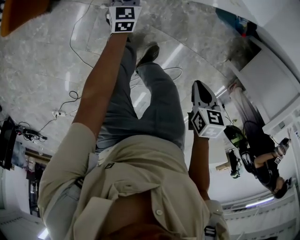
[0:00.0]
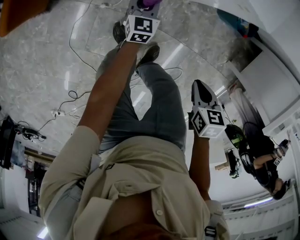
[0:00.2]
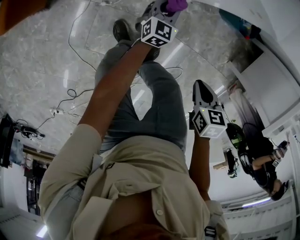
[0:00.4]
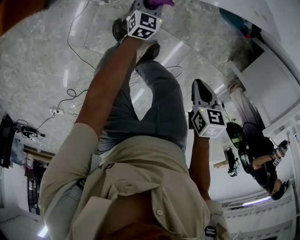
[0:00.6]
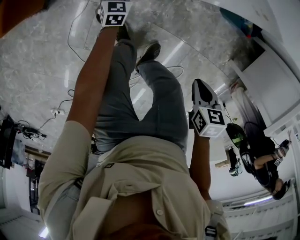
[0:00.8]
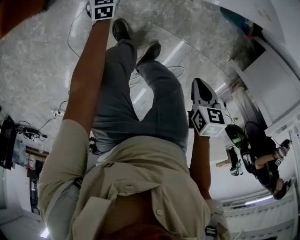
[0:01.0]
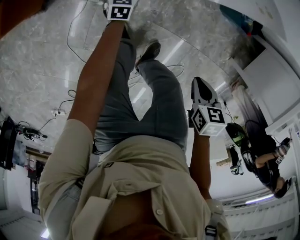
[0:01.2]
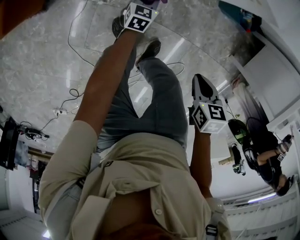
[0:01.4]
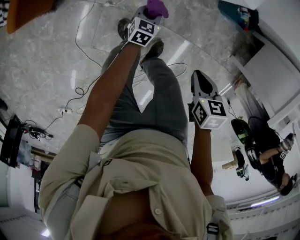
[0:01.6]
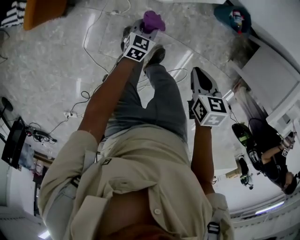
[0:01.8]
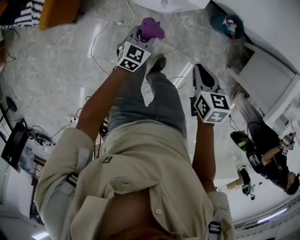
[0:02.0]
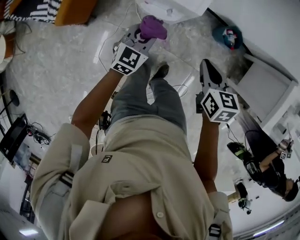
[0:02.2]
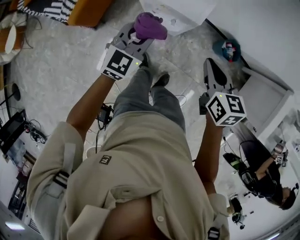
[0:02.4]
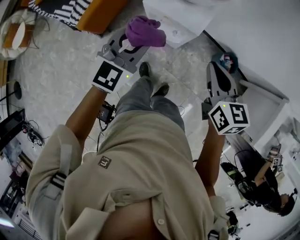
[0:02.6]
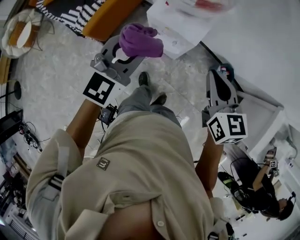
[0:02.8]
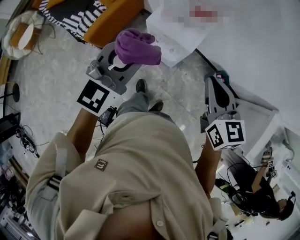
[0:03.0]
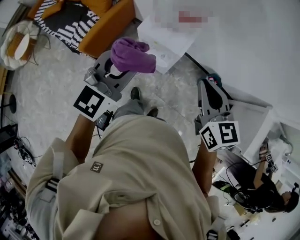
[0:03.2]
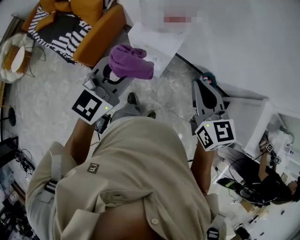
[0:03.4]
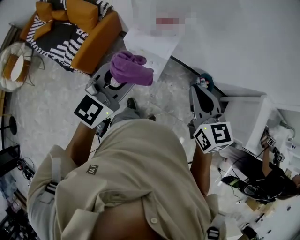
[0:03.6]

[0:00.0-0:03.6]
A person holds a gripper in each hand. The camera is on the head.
0:00.0 to 0:01.8: The right gripper goes about 10 cm upward; the left gripper goes left and right, roughly 20 cm each way, reversing 2 times, and turns by roughly 30 degrees.
0:01.8 to 0:03.6: The two grippers go some 60 cm upward. The right gripper tilts its fingers some 40 degrees upward; the left gripper tips its fingers upward by about 30 degrees.

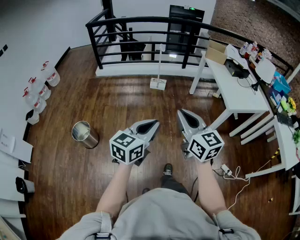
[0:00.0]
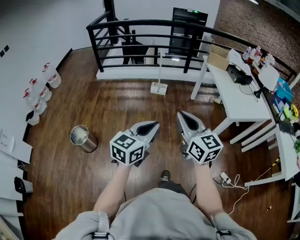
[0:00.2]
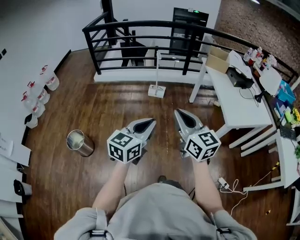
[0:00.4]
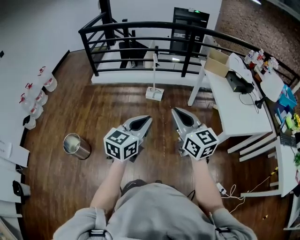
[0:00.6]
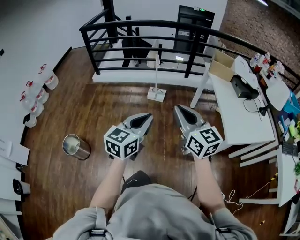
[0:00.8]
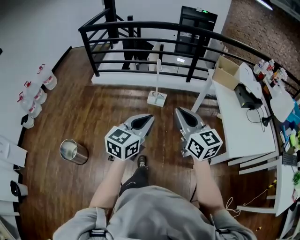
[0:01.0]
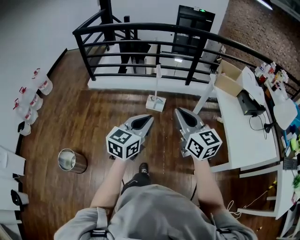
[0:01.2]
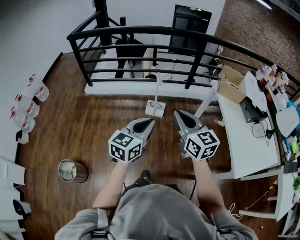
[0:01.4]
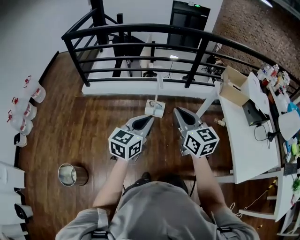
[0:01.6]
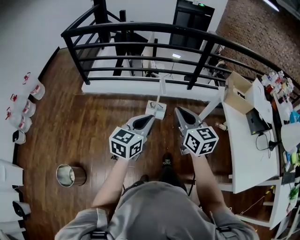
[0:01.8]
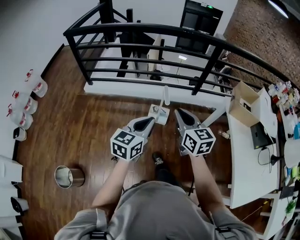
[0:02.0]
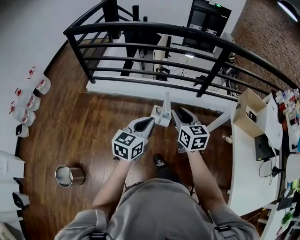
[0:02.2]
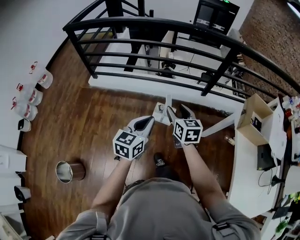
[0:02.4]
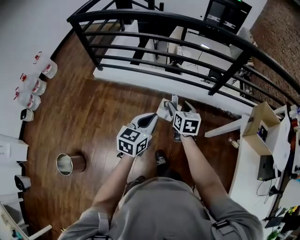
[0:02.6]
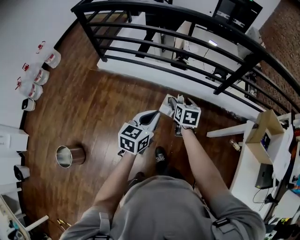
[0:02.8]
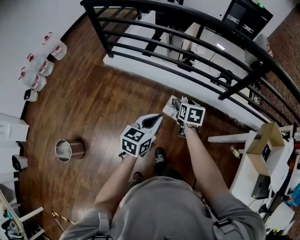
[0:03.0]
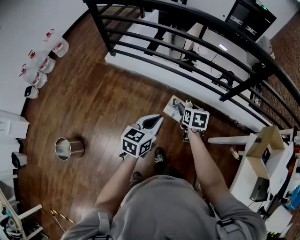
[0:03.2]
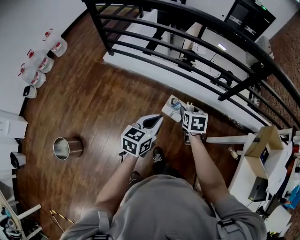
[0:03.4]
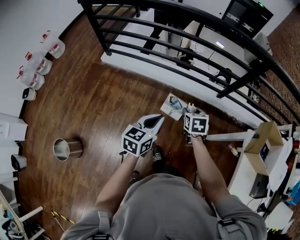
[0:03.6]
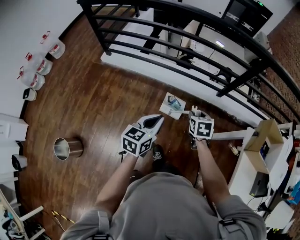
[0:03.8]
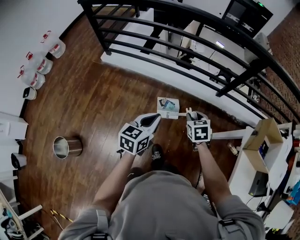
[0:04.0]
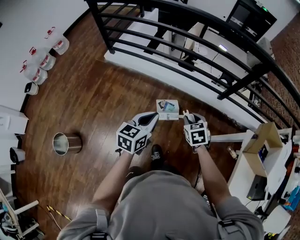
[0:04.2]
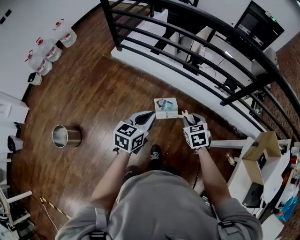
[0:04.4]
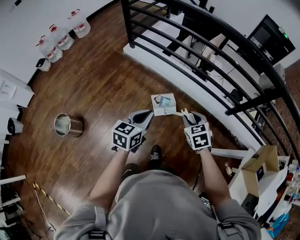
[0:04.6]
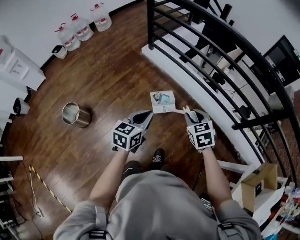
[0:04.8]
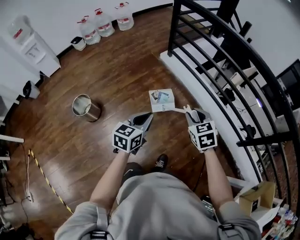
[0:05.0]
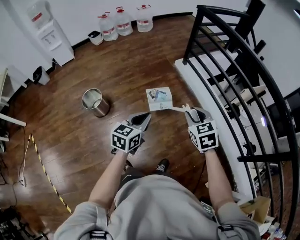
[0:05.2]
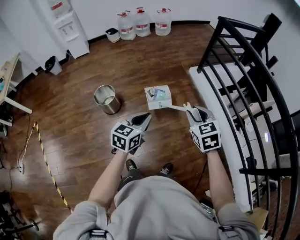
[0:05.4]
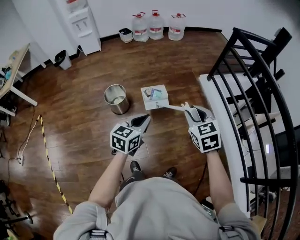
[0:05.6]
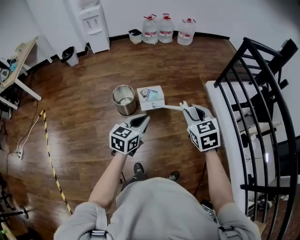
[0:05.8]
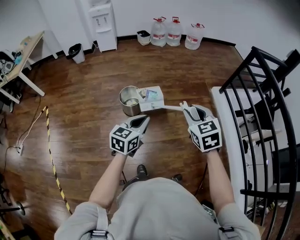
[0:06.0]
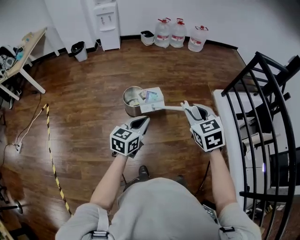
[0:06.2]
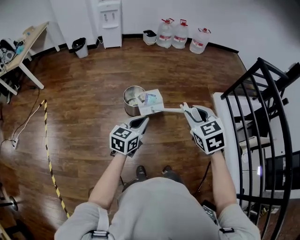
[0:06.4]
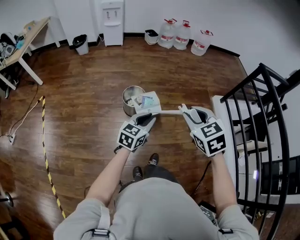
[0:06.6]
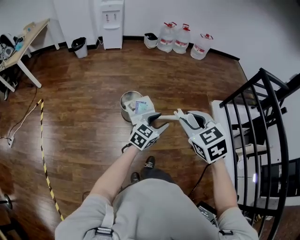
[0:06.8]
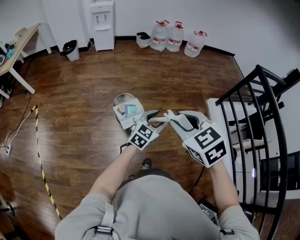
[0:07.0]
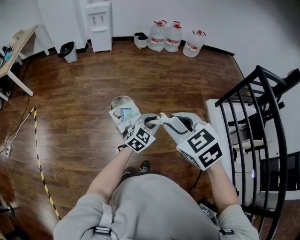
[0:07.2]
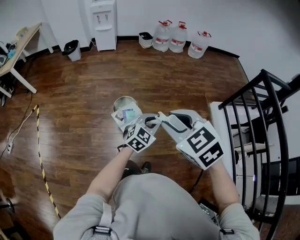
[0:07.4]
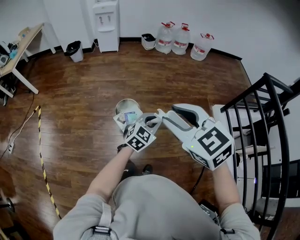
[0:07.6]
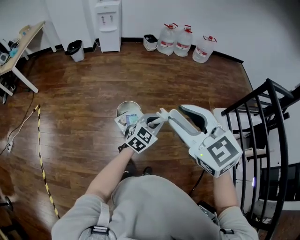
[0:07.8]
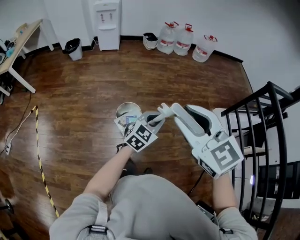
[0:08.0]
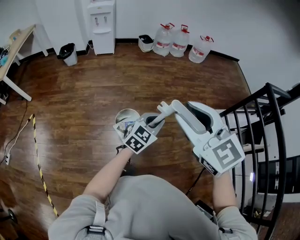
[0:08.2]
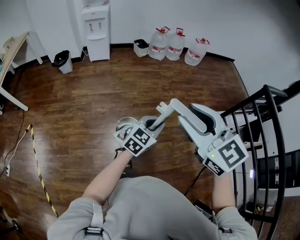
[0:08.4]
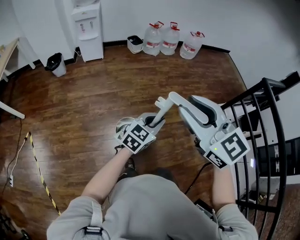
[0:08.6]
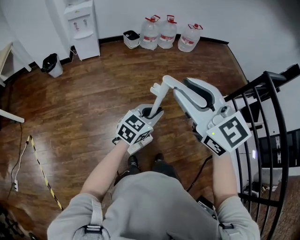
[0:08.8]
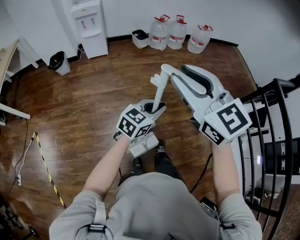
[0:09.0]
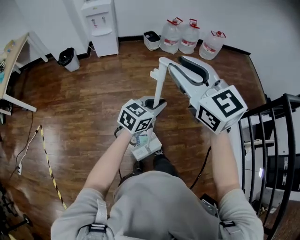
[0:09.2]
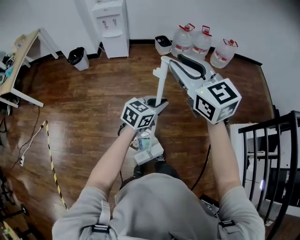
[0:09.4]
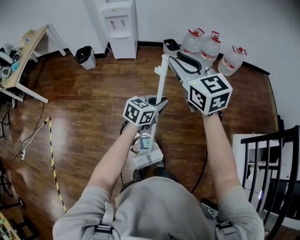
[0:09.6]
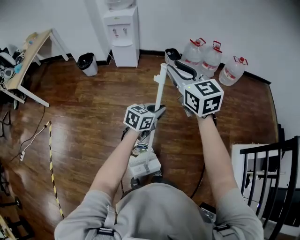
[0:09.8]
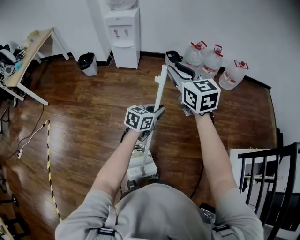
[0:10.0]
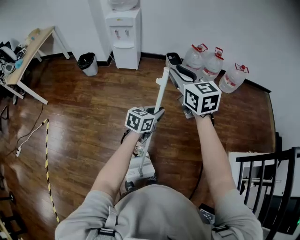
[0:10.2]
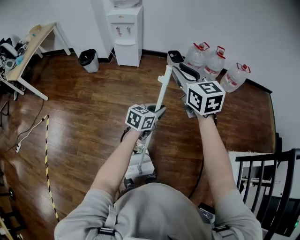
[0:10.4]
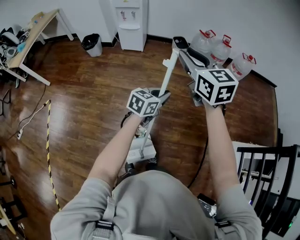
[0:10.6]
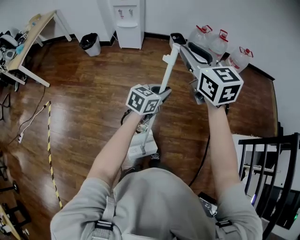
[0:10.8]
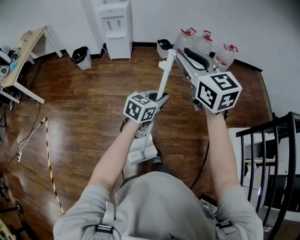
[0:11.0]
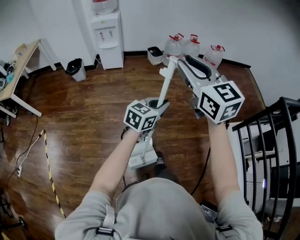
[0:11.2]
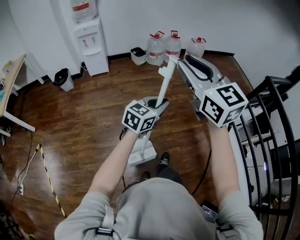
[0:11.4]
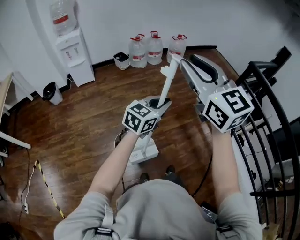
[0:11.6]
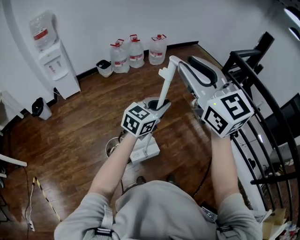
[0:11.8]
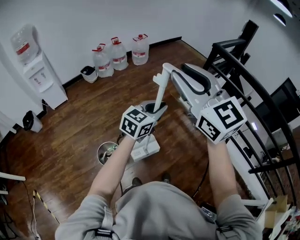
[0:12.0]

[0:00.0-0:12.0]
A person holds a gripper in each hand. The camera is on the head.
0:00.0 to 0:01.6: The two grippers travel together, forward, roughly 60 cm.
0:01.6 to 0:03.0: The grippers both shift forward and downward by some 40 cm. The right gripper angles its fingers downward, by roughly 40 degrees, and opens its fingers. Meanwhile the left gripper rotates approximately 20 degrees.
0:03.0 to 0:04.4: The right gripper is displaced backward by approximately 10 cm, changes its angle by some 40 degrees, and closes up.
0:04.4 to 0:06.0: Both grippers are carried about 60 cm. The right gripper rotates approximately 60 degrees; the left gripper rotates approximately 50 degrees.
0:06.0 to 0:07.6: The right gripper heads to the left, forward and upward, covering about 20 cm, and swivels approximately 30 degrees, while the left gripper heads forward, covering roughly 20 cm, turns by approximately 30 degrees, and opens and closes again.
0:07.6 to 0:09.0: Both grippers travel together forward and to the left, roughly 35 cm. The left gripper rotates about 20 degrees; the right gripper turns by roughly 20 degrees.
0:09.0 to 0:10.4: The two grippers go roughly 30 cm forward. The left gripper turns by some 30 degrees.
0:10.4 to 0:12.0: The pair of grippers is taken about 50 cm. The right gripper changes its angle by roughly 40 degrees, while the left gripper swivels some 50 degrees.

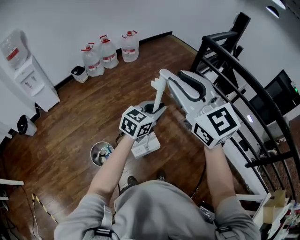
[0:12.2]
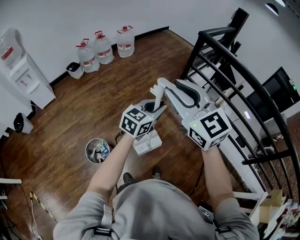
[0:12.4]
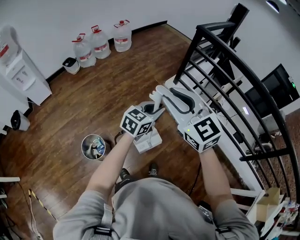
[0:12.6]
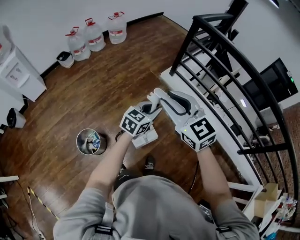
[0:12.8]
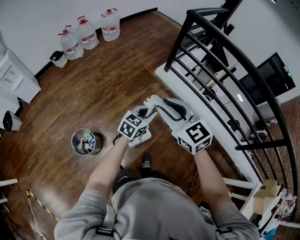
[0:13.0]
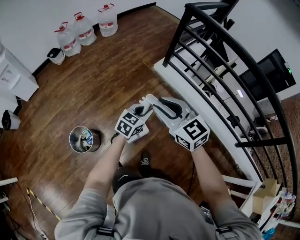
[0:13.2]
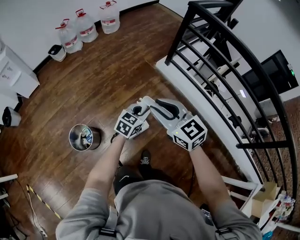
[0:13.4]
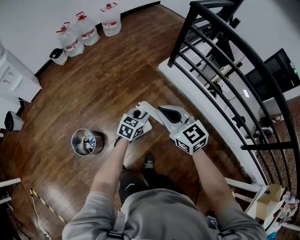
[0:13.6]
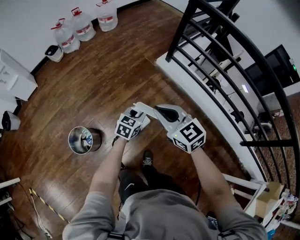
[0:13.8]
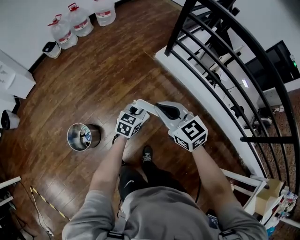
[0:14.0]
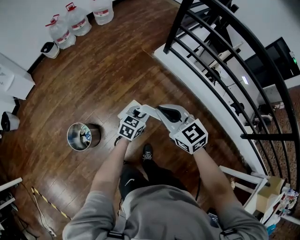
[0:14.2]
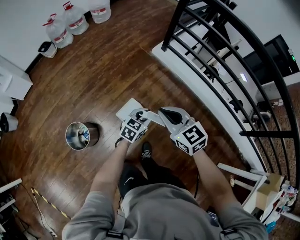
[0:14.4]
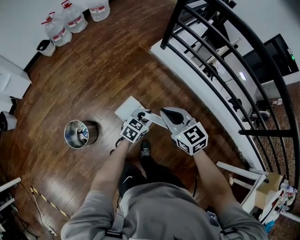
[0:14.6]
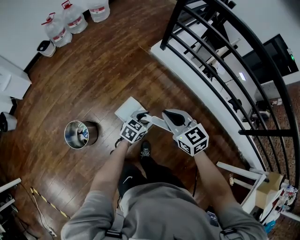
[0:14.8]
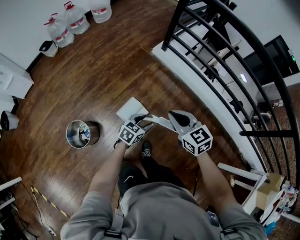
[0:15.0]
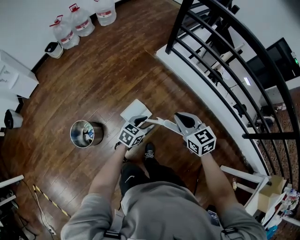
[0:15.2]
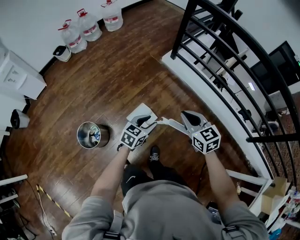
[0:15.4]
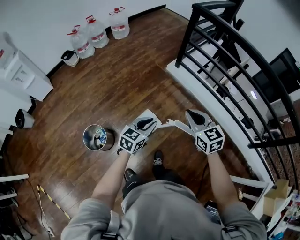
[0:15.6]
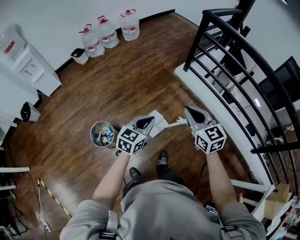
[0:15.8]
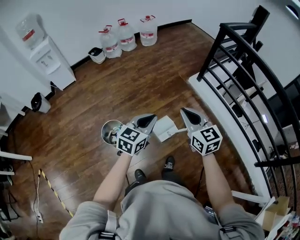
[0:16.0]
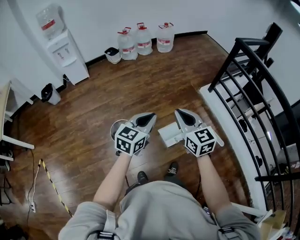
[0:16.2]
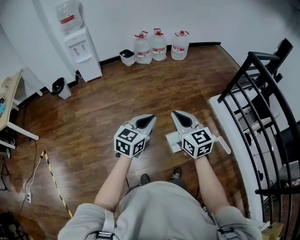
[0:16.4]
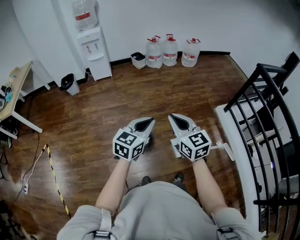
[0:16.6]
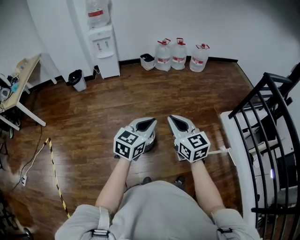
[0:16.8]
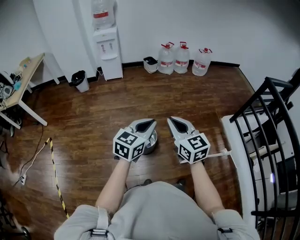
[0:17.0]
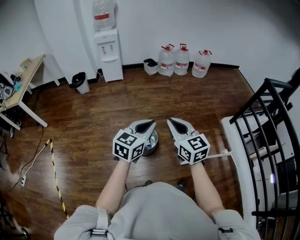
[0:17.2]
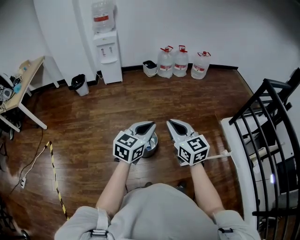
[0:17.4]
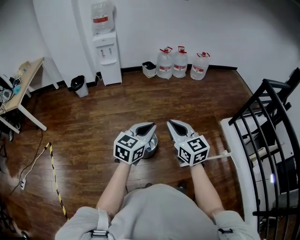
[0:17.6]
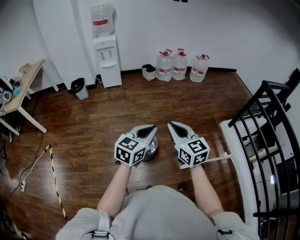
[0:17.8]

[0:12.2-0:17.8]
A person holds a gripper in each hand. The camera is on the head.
0:12.2 to 0:13.6: The left gripper moves downward, about 30 cm. Meanwhile the right gripper heads downward and to the right, covering roughly 35 cm, turns by about 20 degrees, and closes its fingers.
0:13.6 to 0:15.0: The left gripper moves backward, downward and to the right, approximately 15 cm, and opens its fingers. Meanwhile the right gripper shifts some 15 cm downward and to the right.
0:15.0 to 0:16.4: The left gripper moves about 50 cm, turns by approximately 50 degrees, and closes. Meanwhile the right gripper ends up some 40 cm from where it was, and turns by about 30 degrees.
0:16.4 to 0:17.8: Both grippers travel together to the left, some 15 cm.

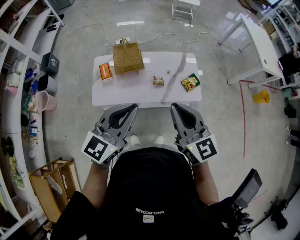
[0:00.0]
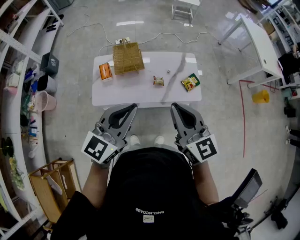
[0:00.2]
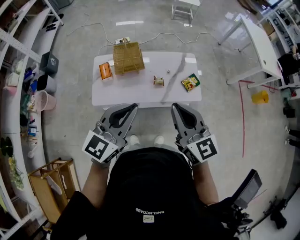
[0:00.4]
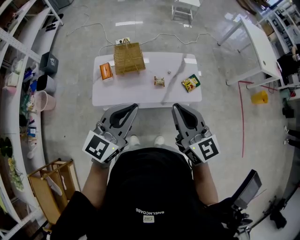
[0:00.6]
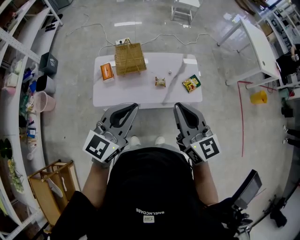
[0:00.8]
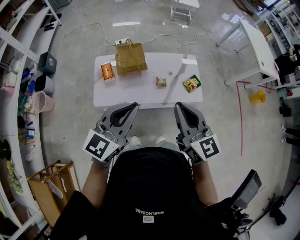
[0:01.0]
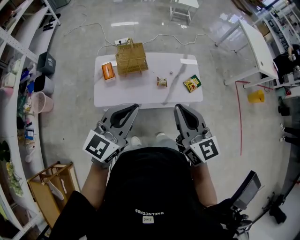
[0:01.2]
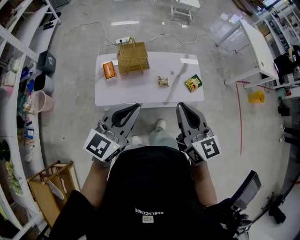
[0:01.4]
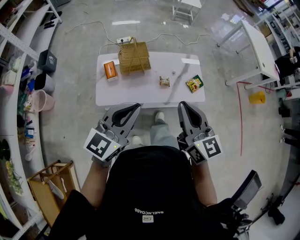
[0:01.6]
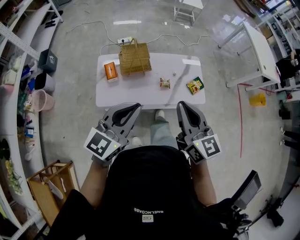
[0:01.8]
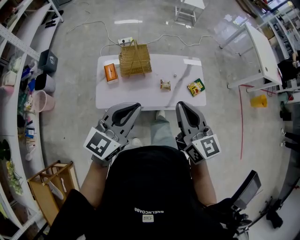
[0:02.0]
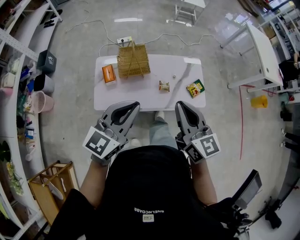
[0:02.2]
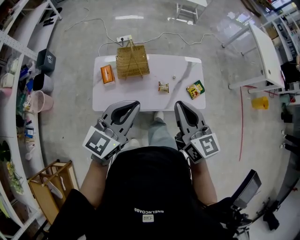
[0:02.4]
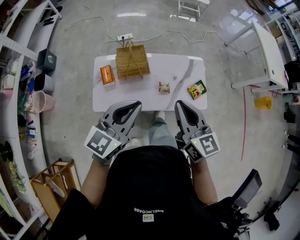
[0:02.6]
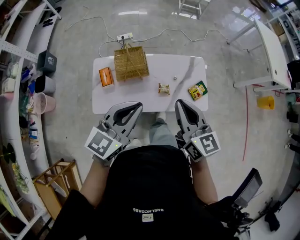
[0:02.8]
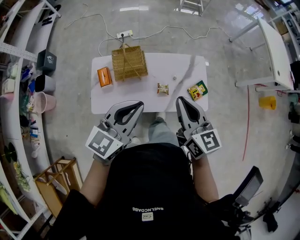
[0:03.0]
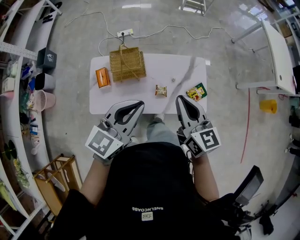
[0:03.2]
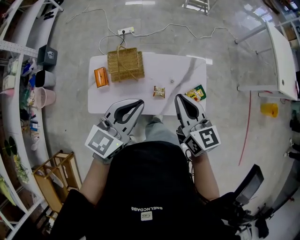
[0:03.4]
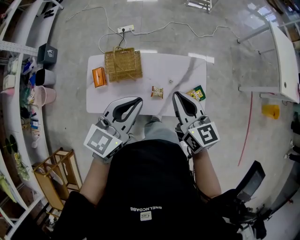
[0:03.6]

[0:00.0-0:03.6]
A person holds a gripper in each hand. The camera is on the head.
0:00.0 to 0:01.8: Both grippers travel together to the left, approximately 10 cm.
0:01.8 to 0:03.6: The left gripper moves forward and to the right, some 30 cm. The right gripper moves forward, some 30 cm.
